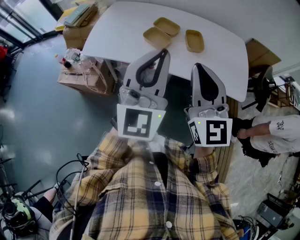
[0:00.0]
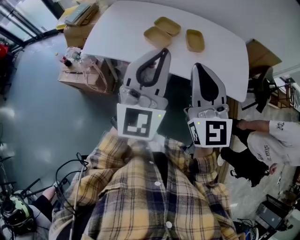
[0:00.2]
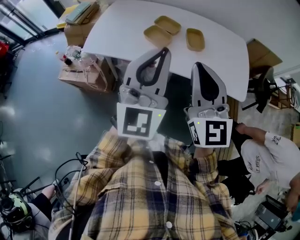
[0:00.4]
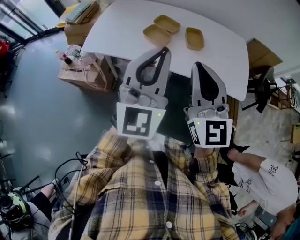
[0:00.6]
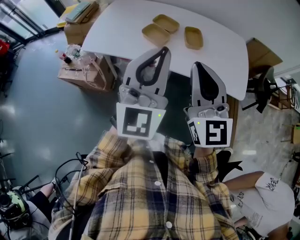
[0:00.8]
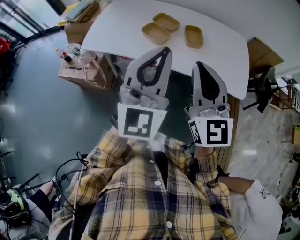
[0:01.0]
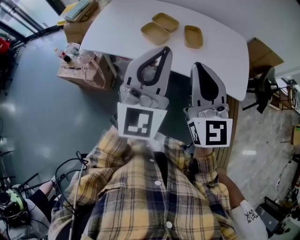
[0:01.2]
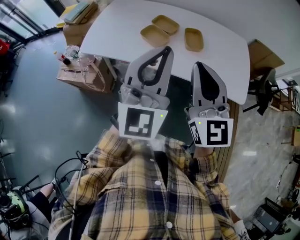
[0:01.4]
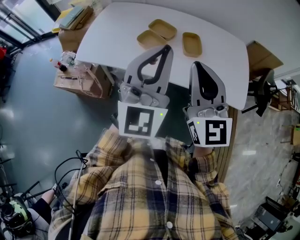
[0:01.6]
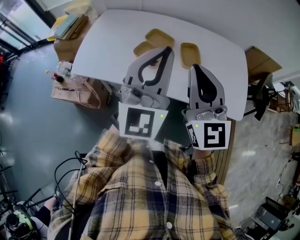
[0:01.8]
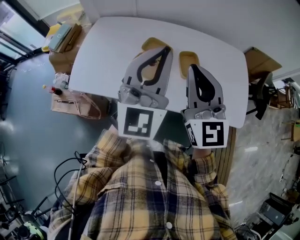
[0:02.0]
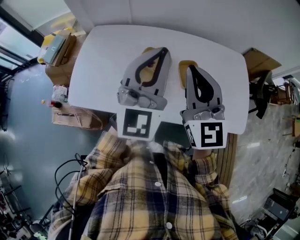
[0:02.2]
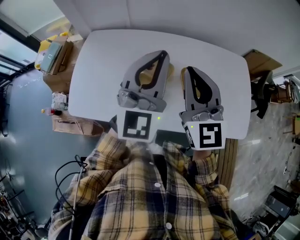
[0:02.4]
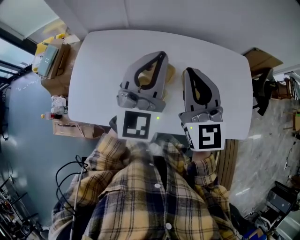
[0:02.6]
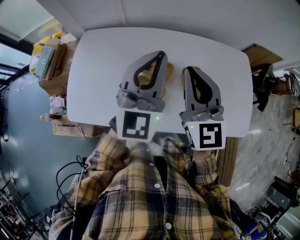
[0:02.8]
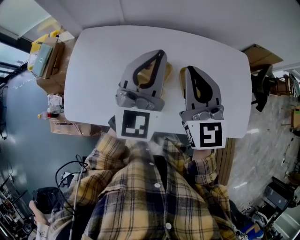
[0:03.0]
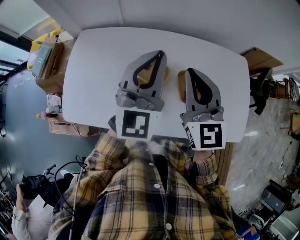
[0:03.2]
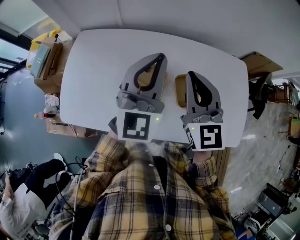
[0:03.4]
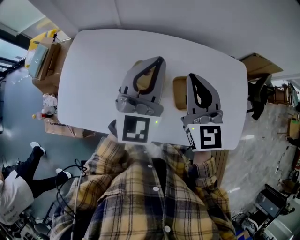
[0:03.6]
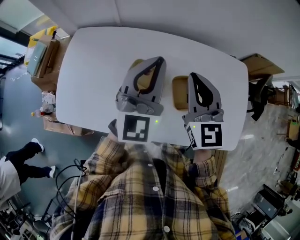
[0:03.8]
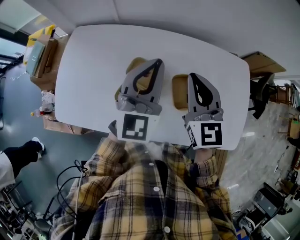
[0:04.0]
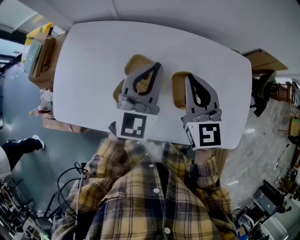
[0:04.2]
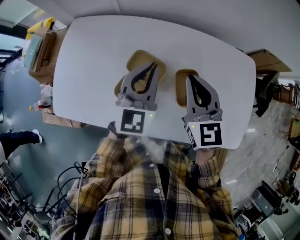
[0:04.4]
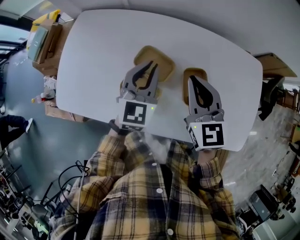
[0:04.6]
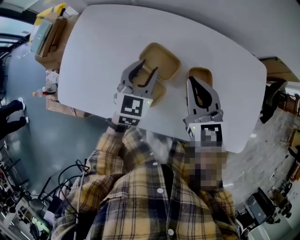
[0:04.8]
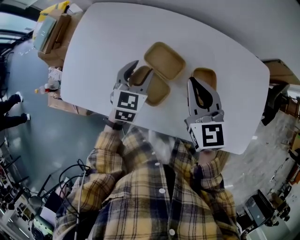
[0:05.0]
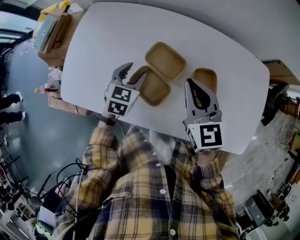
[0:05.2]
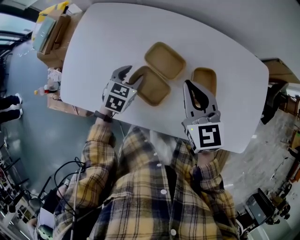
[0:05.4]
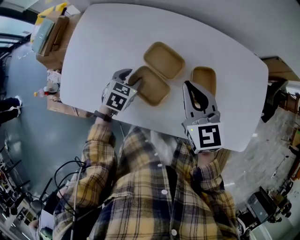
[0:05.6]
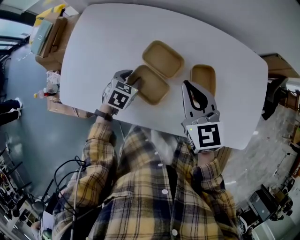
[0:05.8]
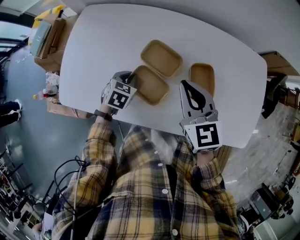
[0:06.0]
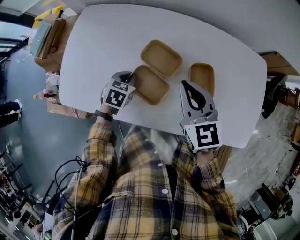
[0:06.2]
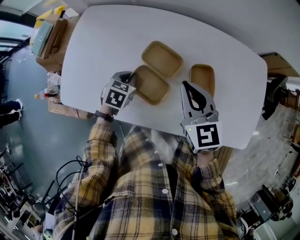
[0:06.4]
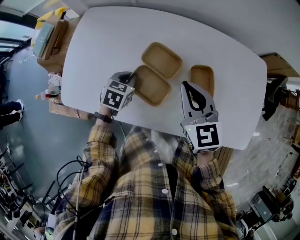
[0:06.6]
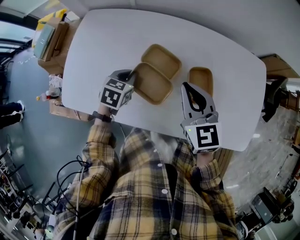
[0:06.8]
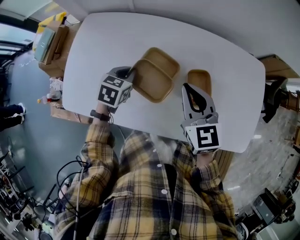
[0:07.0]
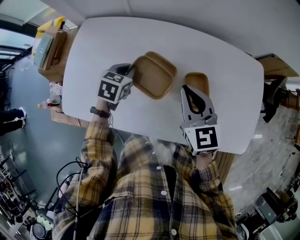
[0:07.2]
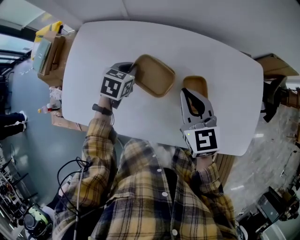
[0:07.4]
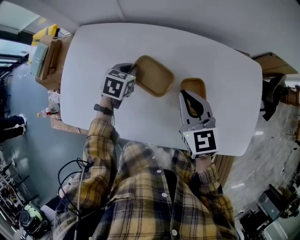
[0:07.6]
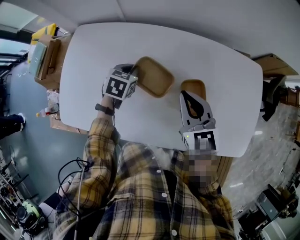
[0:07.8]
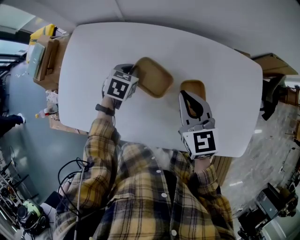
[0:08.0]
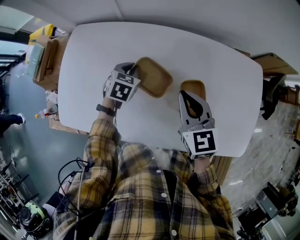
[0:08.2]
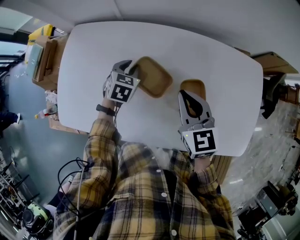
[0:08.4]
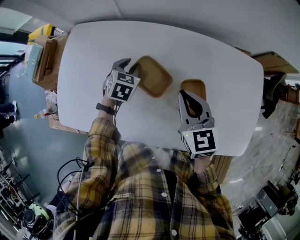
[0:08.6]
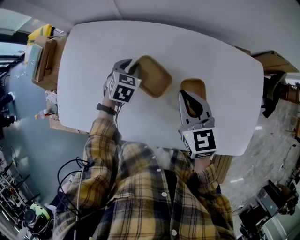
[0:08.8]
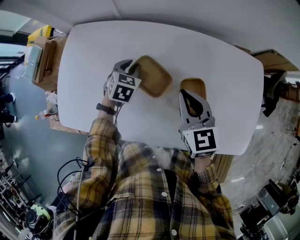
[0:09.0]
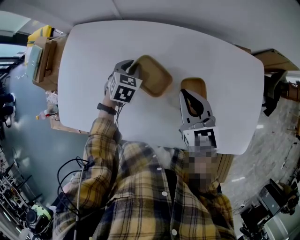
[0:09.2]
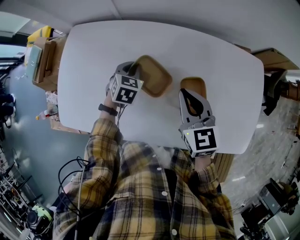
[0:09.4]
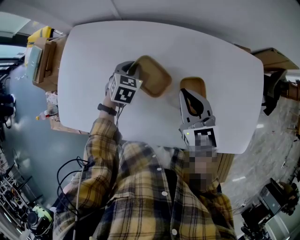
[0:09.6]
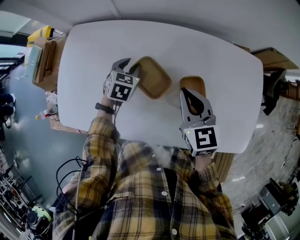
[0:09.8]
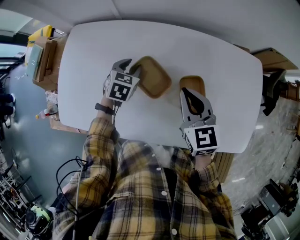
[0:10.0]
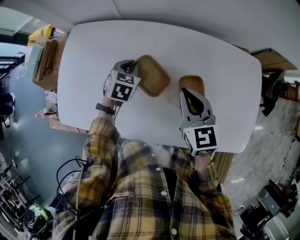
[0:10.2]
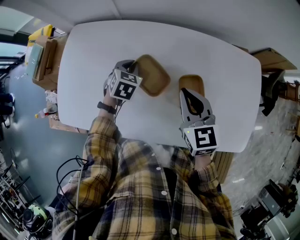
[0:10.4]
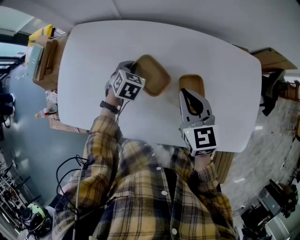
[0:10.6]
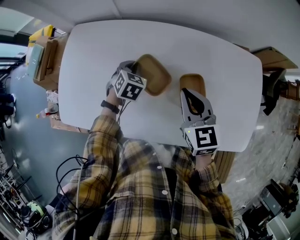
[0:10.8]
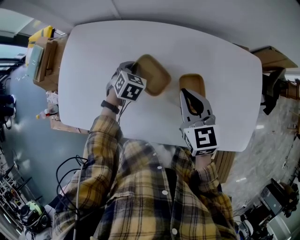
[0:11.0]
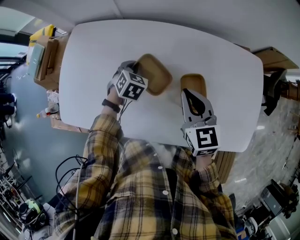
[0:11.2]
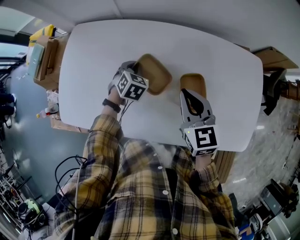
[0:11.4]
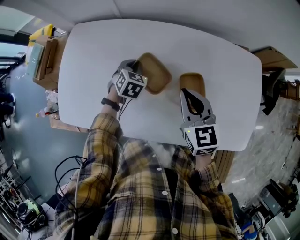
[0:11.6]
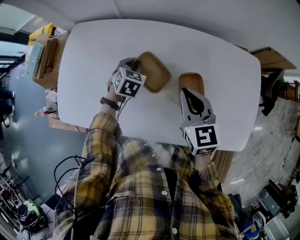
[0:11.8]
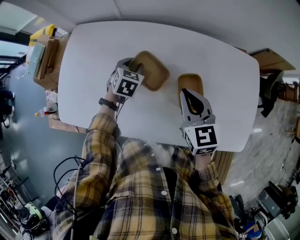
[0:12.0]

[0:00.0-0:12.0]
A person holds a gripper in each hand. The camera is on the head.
0:00.0 to 0:01.6: Both grippers move forward, about 5 cm.
0:01.6 to 0:03.0: The grippers both shift forward by about 30 cm.
0:03.0 to 0:04.4: The right gripper shifts approximately 15 cm downward, to the right and forward; the left gripper moves downward, some 15 cm.
0:04.4 to 0:06.0: The left gripper heads downward and to the left, covering about 25 cm, points its fingers some 50 degrees further downward, and opens, then closes again, while the right gripper heads to the left, covering approximately 5 cm.
0:06.0 to 0:07.6: The right gripper changes place by approximately 5 cm, while the left gripper moves forward and upward, approximately 15 cm.
0:07.6 to 0:10.4: The grippers stay close to where they were, moving slightly.
0:10.4 to 0:12.0: The grippers stay close to where they were, moving slightly.

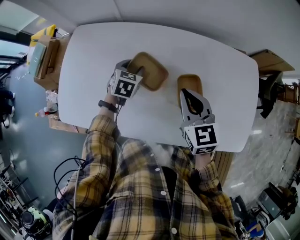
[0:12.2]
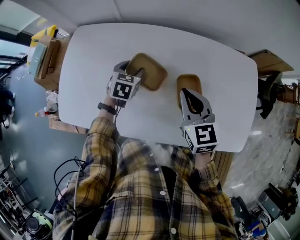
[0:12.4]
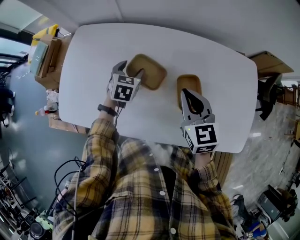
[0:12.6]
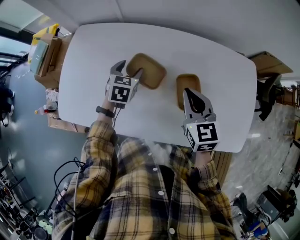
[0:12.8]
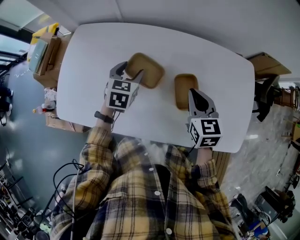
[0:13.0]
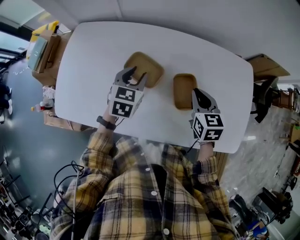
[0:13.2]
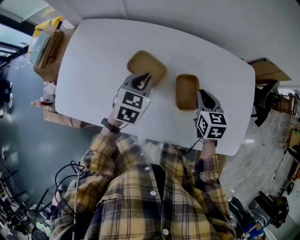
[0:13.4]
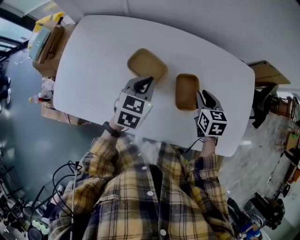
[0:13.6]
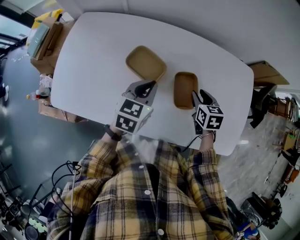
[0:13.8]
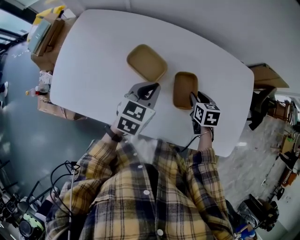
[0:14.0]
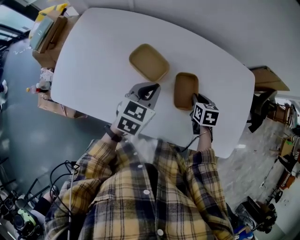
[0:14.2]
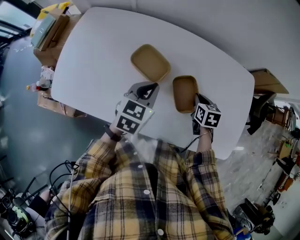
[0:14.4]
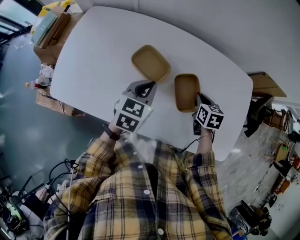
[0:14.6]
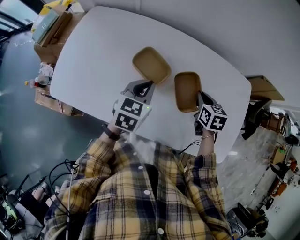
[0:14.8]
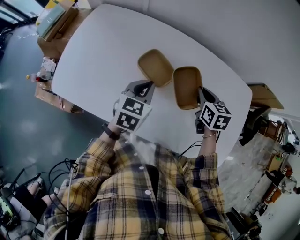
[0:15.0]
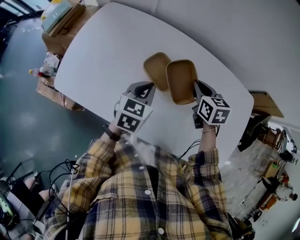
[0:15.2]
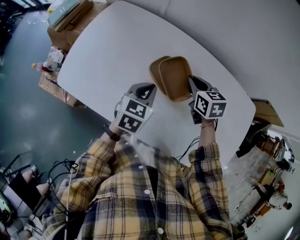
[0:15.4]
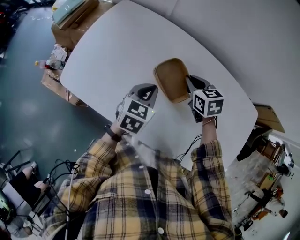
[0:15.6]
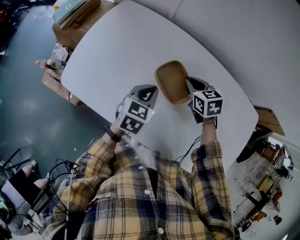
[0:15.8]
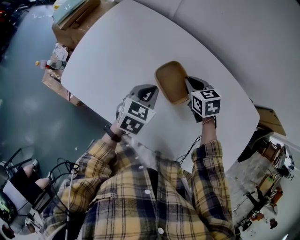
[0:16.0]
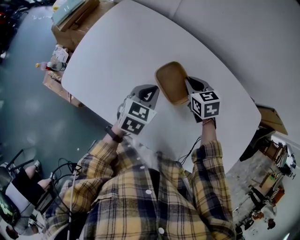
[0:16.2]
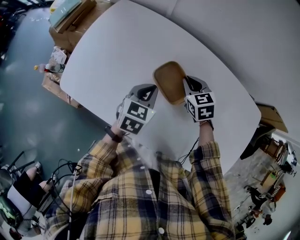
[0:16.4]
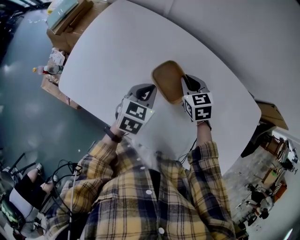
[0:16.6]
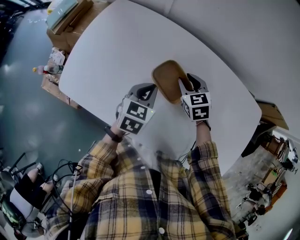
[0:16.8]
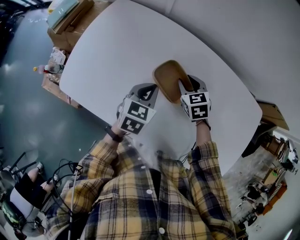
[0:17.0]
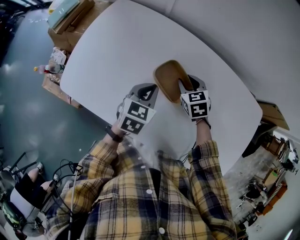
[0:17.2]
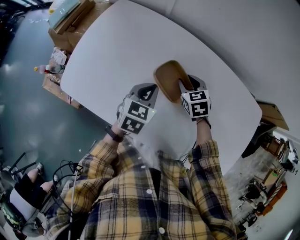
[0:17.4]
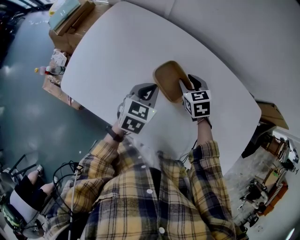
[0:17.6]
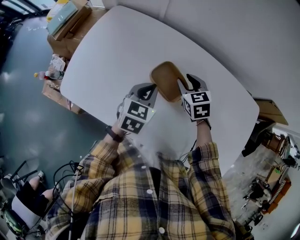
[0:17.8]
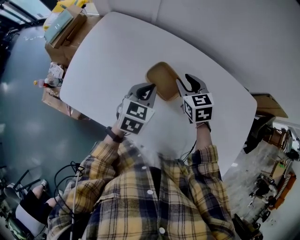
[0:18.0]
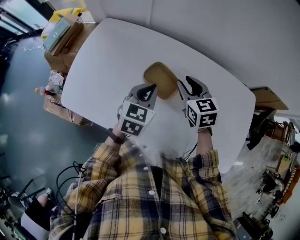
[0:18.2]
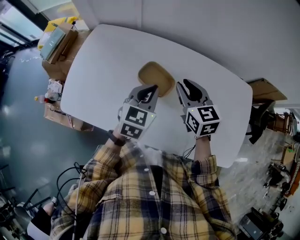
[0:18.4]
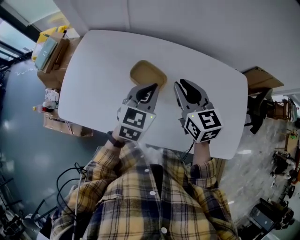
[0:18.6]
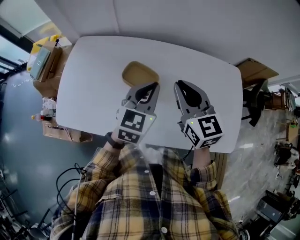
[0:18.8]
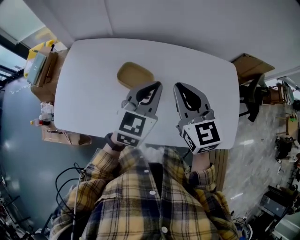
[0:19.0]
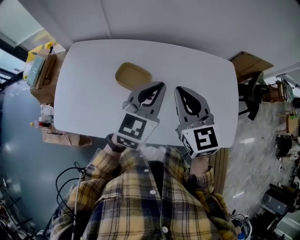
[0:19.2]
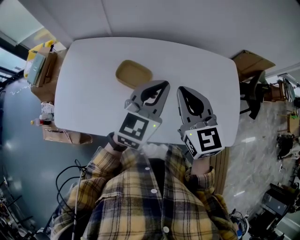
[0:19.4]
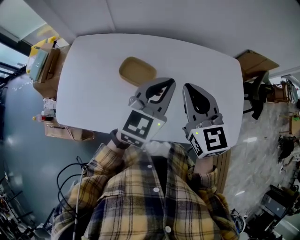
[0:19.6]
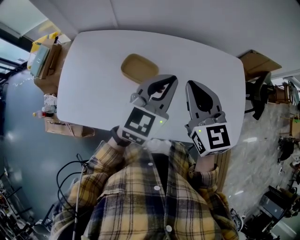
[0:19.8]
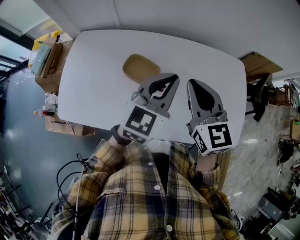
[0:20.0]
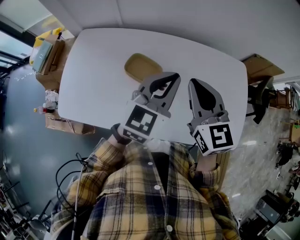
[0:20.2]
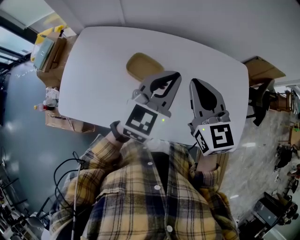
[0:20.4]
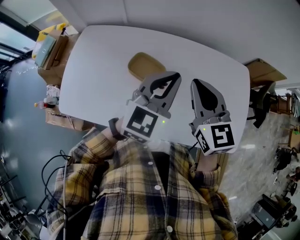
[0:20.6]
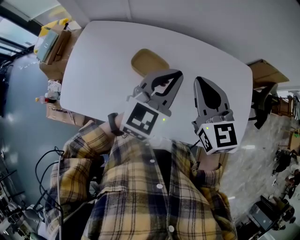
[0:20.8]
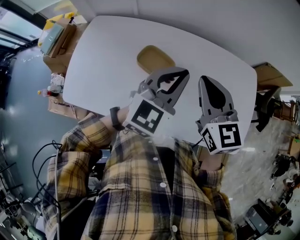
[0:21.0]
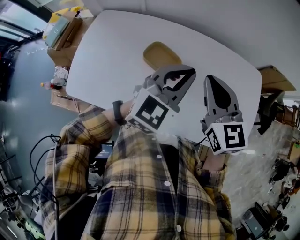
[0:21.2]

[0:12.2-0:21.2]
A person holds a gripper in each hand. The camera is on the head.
0:12.2 to 0:13.8: The right gripper heads downward and to the right, covering about 15 cm, turns by approximately 20 degrees, and opens, while the left gripper is displaced backward, upward and to the right by approximately 15 cm, rotates approximately 20 degrees, and closes.
0:13.8 to 0:15.2: The left gripper travels to the left by roughly 5 cm, while the right gripper goes some 15 cm to the left, forward and upward, and closes up.
0:15.2 to 0:16.6: The left gripper moves roughly 5 cm; the right gripper goes some 10 cm to the left, downward and forward, and turns by some 20 degrees.
0:16.6 to 0:18.2: Both grippers move upward, approximately 10 cm. The right gripper opens up.
0:18.2 to 0:19.8: The left gripper shifts some 20 cm upward and to the right, and changes its angle by about 30 degrees, while the right gripper goes about 20 cm upward, backward and to the right, swivels roughly 20 degrees, and closes up.
0:19.8 to 0:21.2: The grippers move only a little.

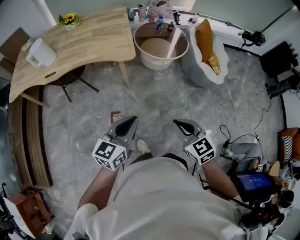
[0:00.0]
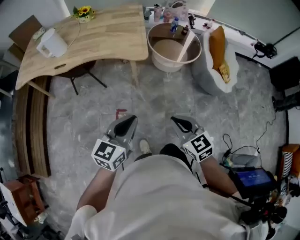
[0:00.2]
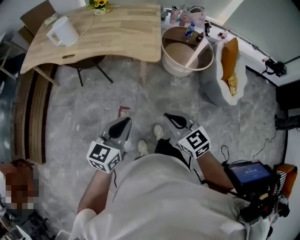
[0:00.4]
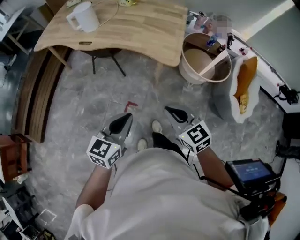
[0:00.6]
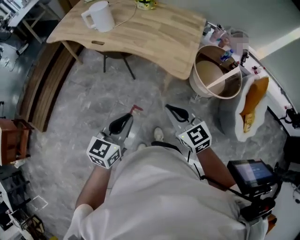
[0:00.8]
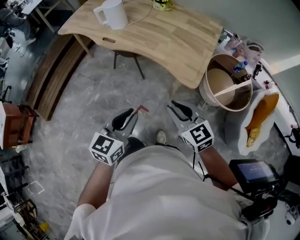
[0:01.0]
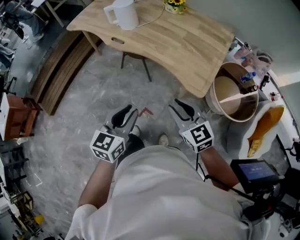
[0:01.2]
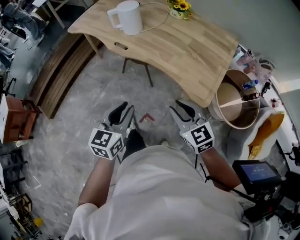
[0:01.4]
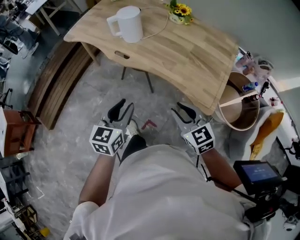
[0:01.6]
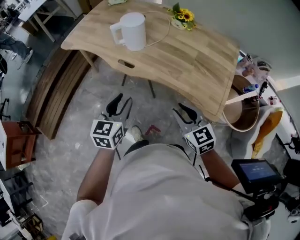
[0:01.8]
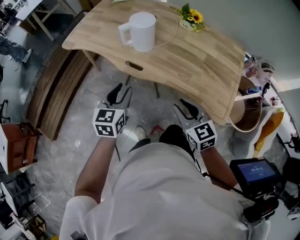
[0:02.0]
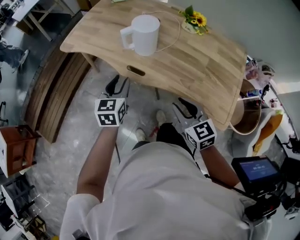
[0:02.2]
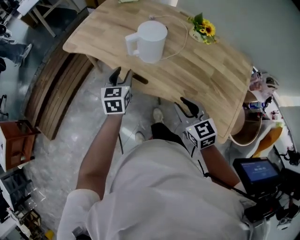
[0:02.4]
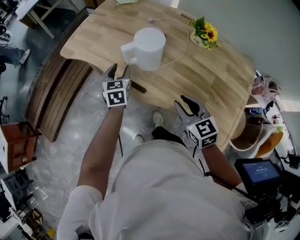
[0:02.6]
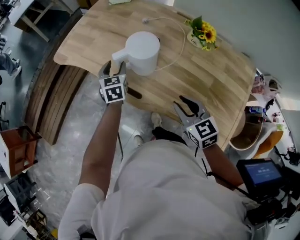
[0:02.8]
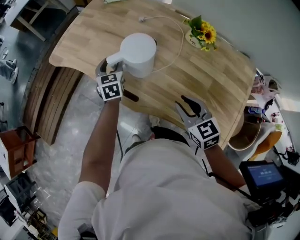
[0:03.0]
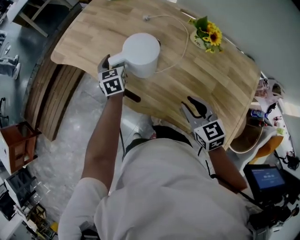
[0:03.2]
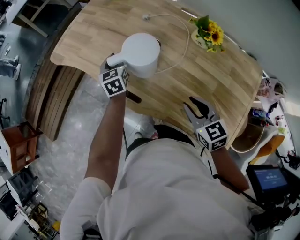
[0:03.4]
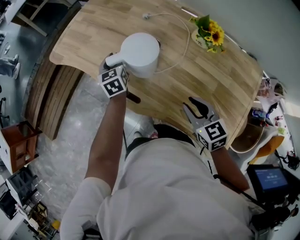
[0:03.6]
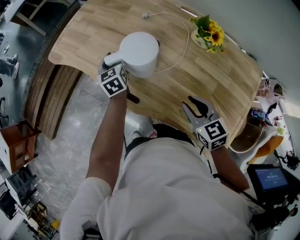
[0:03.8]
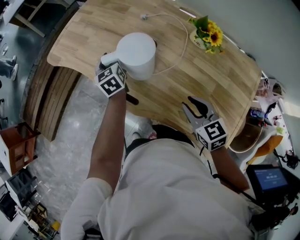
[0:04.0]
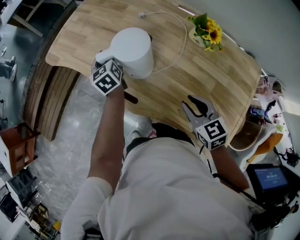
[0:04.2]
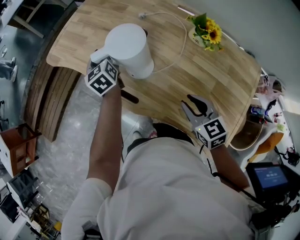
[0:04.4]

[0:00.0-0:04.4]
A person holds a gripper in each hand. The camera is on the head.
0:00.0 to 0:01.4: The left gripper ends up roughly 35 cm from where it was, rotates approximately 50 degrees, and opens its fingers. Meanwhile the right gripper changes place by roughly 40 cm, rotates roughly 40 degrees, and opens.
0:01.4 to 0:03.0: Both grippers are carried forward, roughly 50 cm. The left gripper swivels roughly 30 degrees, and opens.
0:03.0 to 0:04.4: The left gripper is displaced forward by about 5 cm, swivels roughly 30 degrees, and closes its fingers.
